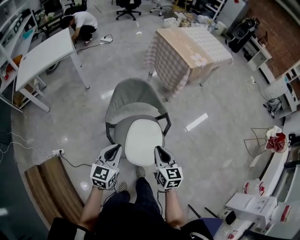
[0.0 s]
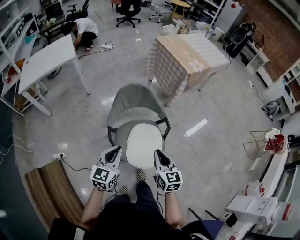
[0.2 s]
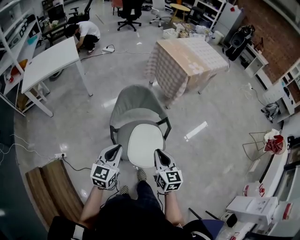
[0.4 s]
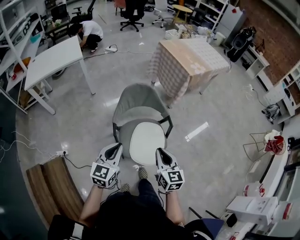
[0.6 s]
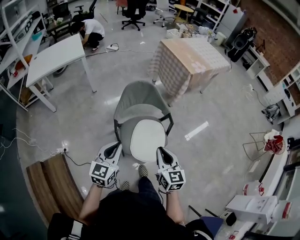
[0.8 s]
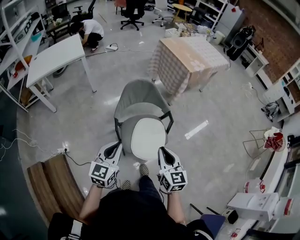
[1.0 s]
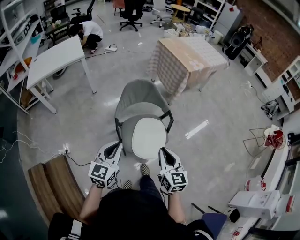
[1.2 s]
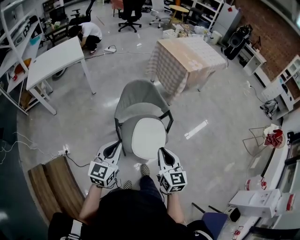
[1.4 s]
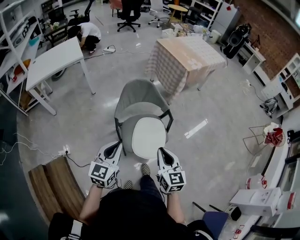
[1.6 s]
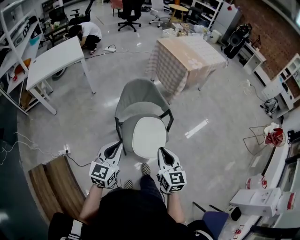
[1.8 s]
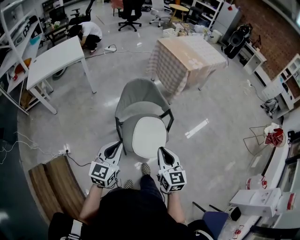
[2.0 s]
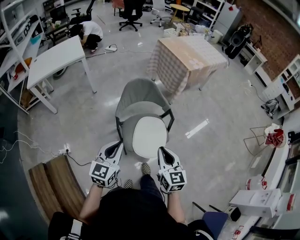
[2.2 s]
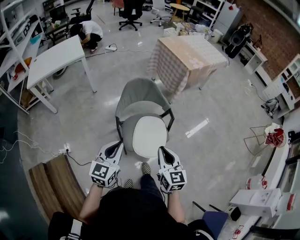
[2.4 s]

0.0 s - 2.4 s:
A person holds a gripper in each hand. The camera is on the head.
0.0 s - 1.2 s: The two grippers go roughly 15 cm backward and upward.
1.2 s - 2.4 s: Both grippers stay put.

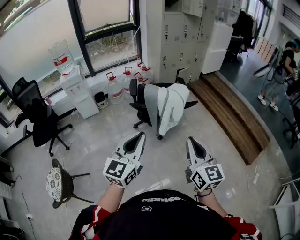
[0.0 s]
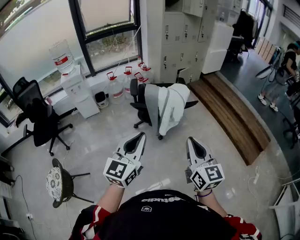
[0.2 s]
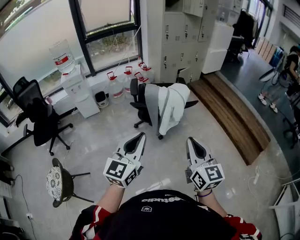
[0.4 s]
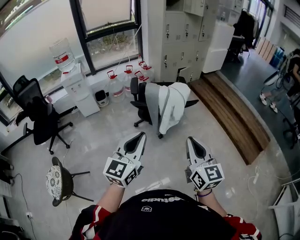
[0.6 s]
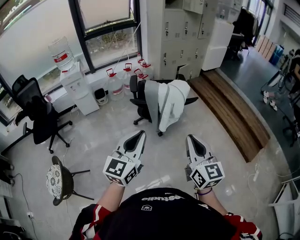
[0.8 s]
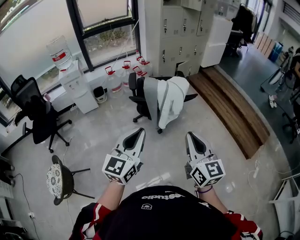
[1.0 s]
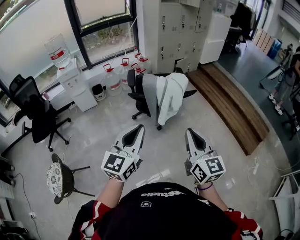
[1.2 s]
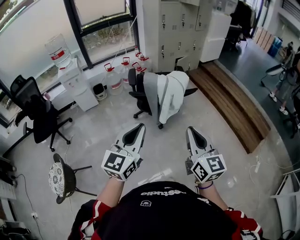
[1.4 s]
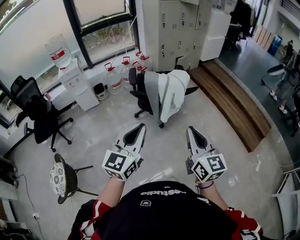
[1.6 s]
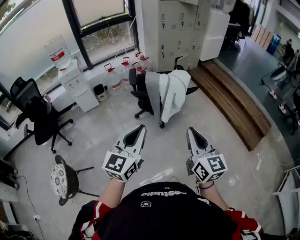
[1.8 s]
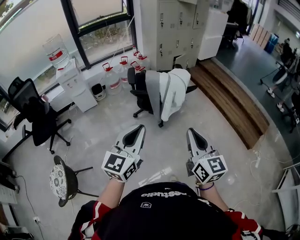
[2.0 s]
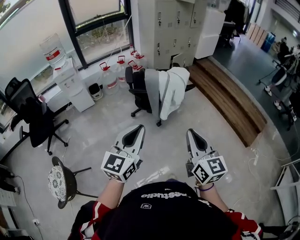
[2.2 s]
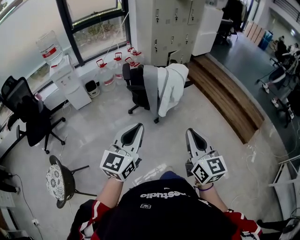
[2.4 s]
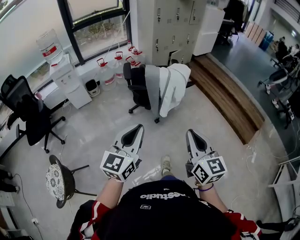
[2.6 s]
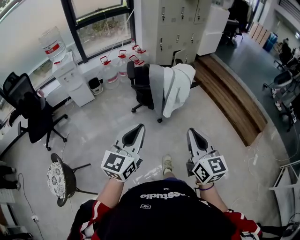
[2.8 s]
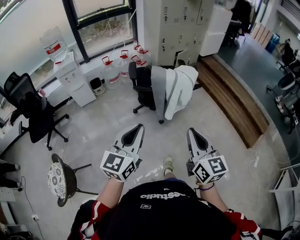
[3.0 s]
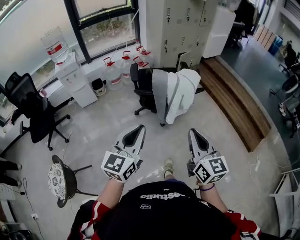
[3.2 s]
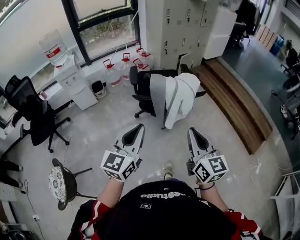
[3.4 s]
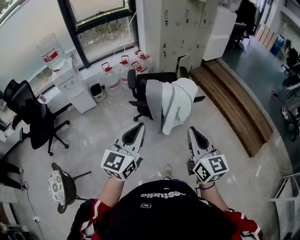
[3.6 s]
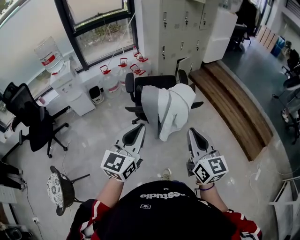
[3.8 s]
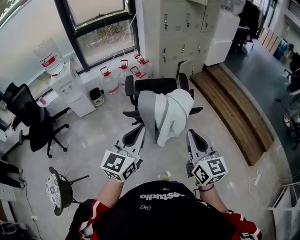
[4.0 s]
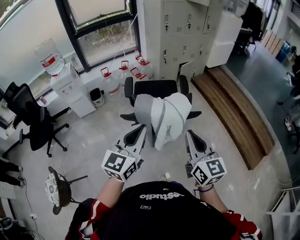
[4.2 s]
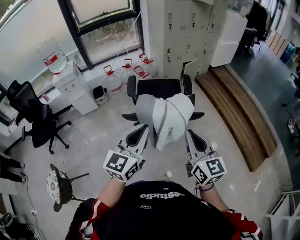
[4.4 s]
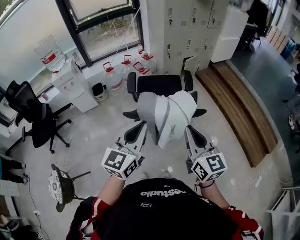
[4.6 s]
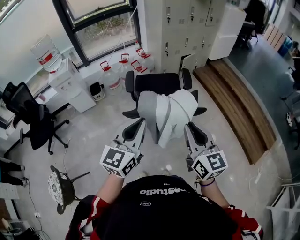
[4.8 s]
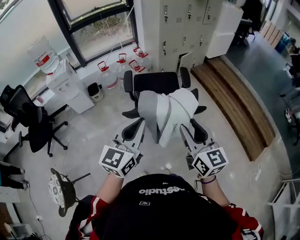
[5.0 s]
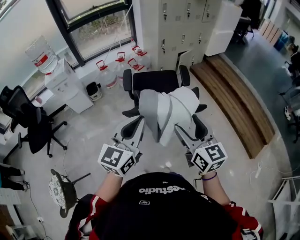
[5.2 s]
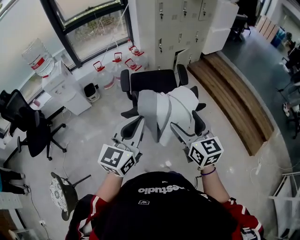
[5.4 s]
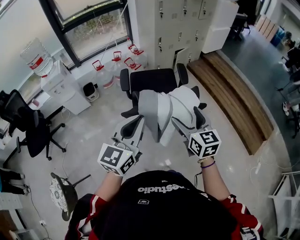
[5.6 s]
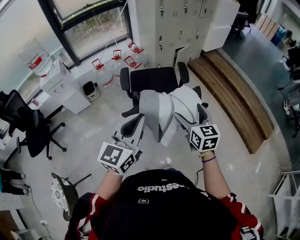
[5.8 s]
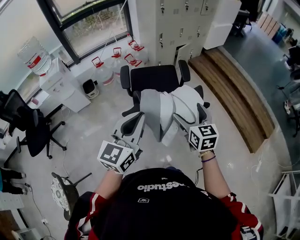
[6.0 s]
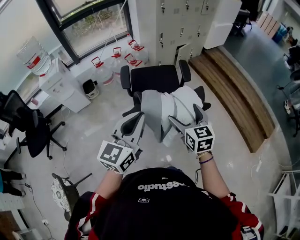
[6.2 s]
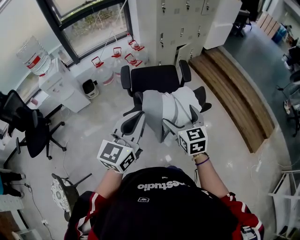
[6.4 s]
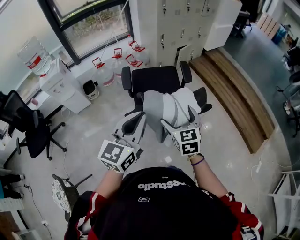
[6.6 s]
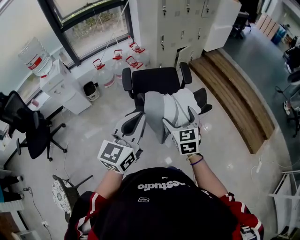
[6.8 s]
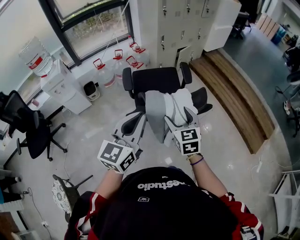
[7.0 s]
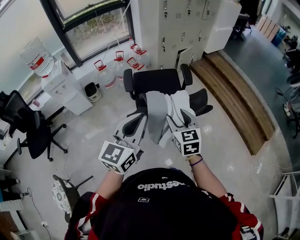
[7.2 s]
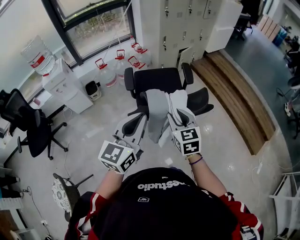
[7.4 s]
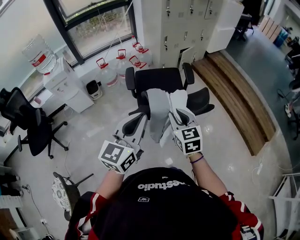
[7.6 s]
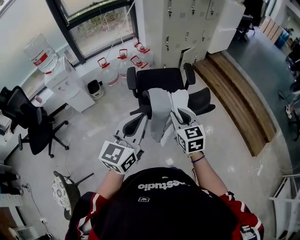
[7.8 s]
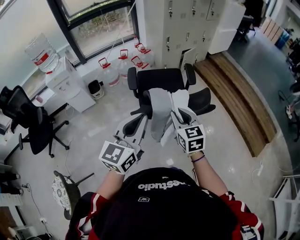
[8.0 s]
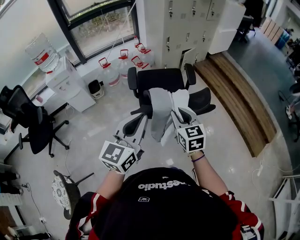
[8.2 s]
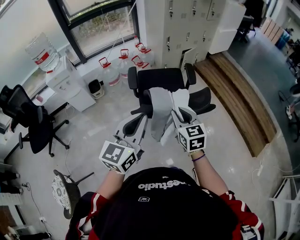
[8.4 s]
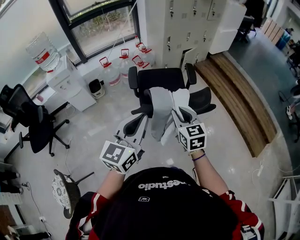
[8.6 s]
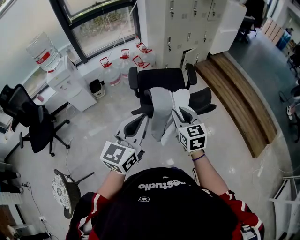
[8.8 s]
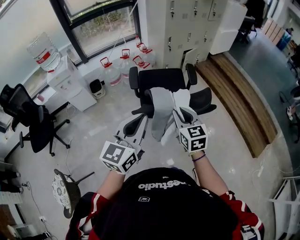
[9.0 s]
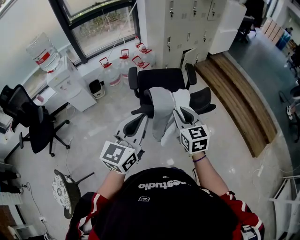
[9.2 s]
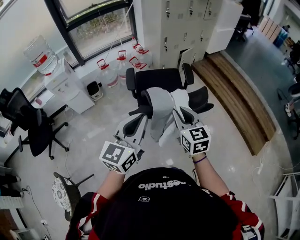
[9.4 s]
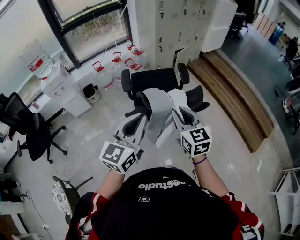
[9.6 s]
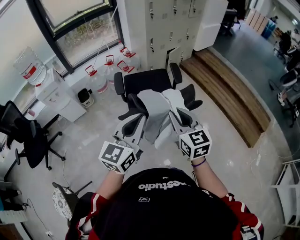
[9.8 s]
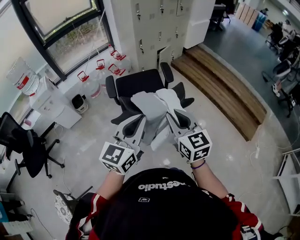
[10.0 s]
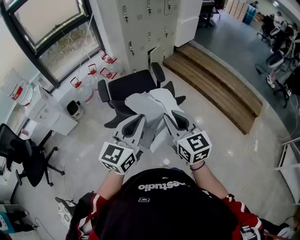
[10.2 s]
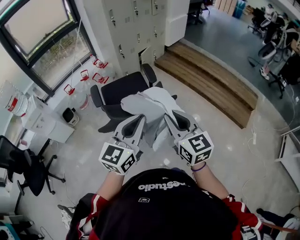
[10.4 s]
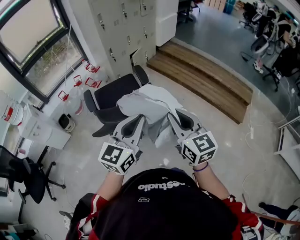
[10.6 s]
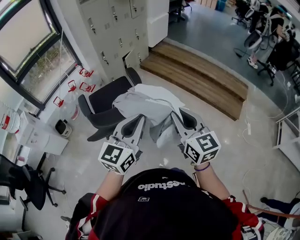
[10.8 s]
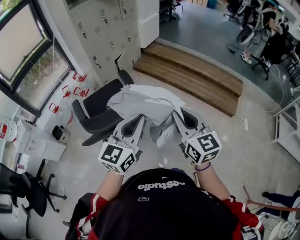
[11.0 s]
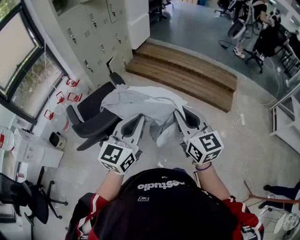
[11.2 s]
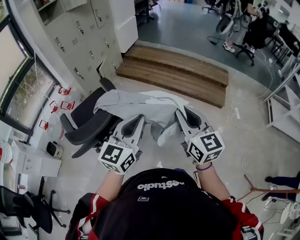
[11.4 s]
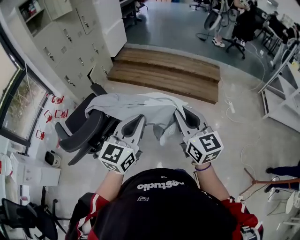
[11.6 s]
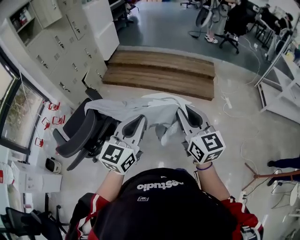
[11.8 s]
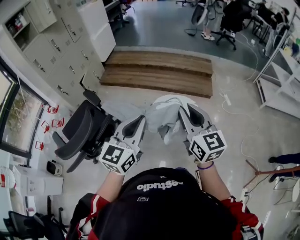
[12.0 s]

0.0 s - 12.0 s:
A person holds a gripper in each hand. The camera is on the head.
0.0 s - 1.6 s: The grippers move only a little.
1.6 s - 3.0 s: The grippers both shift to the left by approximately 5 cm.
3.0 s - 4.4 s: The right gripper goes some 30 cm forward. The left gripper travels forward and to the right by roughly 30 cm.
4.4 s - 6.0 s: The right gripper shifts some 20 cm forward and downward, and opens its fingers; the left gripper goes some 10 cm forward and to the left.
6.0 s - 7.6 s: The right gripper heads to the left, covering about 10 cm, and closes up.
7.6 s - 9.0 s: The grippers make only small movements.
9.0 s - 10.4 s: The left gripper travels to the right by about 20 cm, while the right gripper moves to the right and upward, some 20 cm.
10.4 s - 12.0 s: The right gripper changes place by about 40 cm, and swivels some 40 degrees. Meanwhile the left gripper changes place by roughly 35 cm, and swivels approximately 30 degrees.

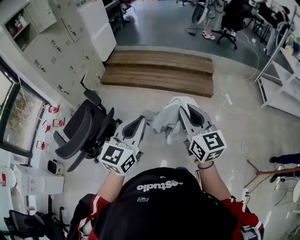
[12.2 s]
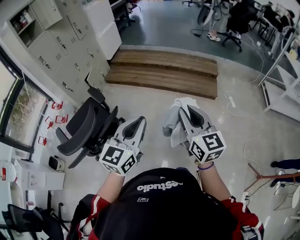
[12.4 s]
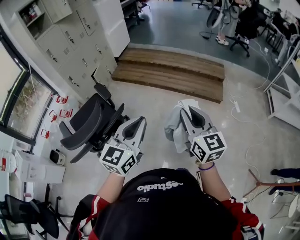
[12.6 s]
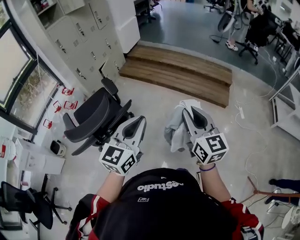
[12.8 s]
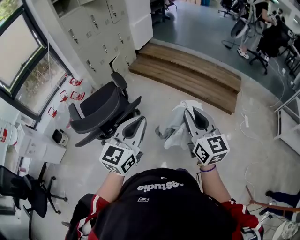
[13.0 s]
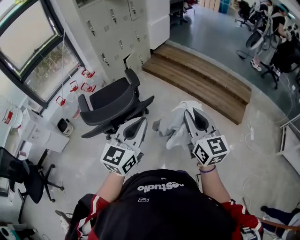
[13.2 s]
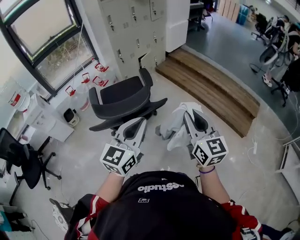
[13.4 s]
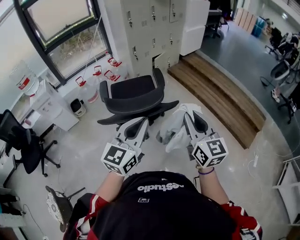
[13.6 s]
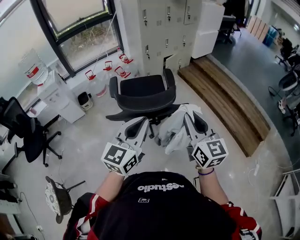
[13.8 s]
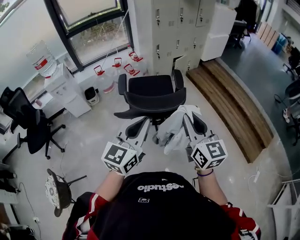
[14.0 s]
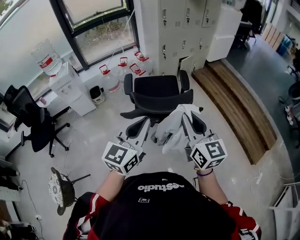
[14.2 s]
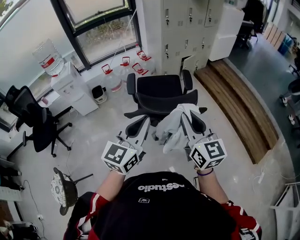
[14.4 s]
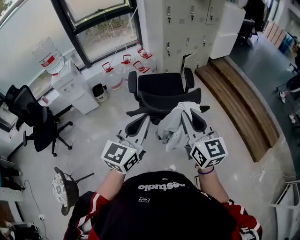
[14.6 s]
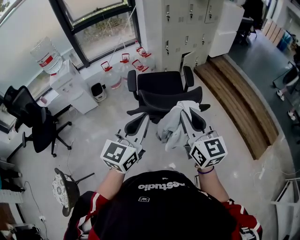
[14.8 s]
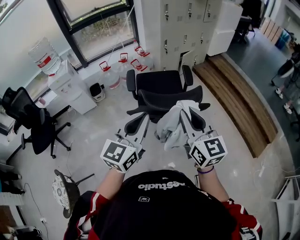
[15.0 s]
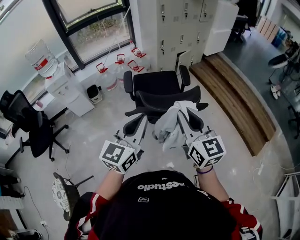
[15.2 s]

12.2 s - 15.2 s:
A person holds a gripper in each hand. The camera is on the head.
12.2 s - 13.8 s: The left gripper shifts by roughly 30 cm, and swivels about 40 degrees. Meanwhile the right gripper shifts by some 30 cm, and turns by some 40 degrees.
13.8 s - 15.2 s: The two grippers go roughly 15 cm to the left.

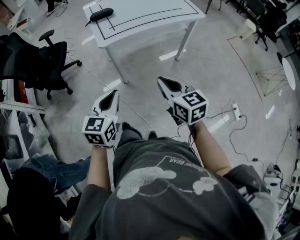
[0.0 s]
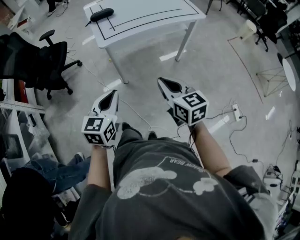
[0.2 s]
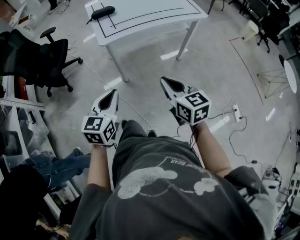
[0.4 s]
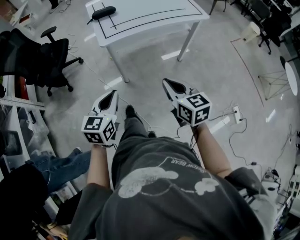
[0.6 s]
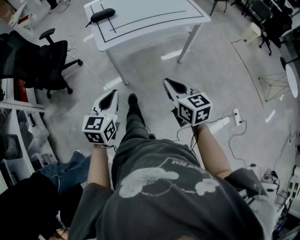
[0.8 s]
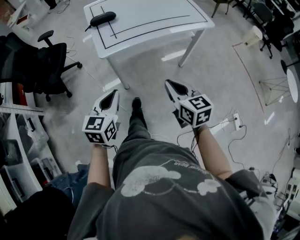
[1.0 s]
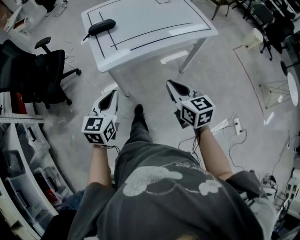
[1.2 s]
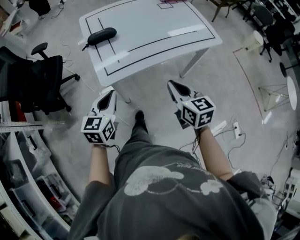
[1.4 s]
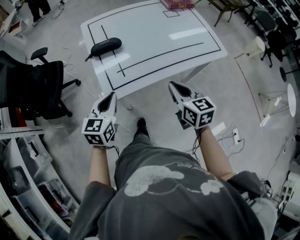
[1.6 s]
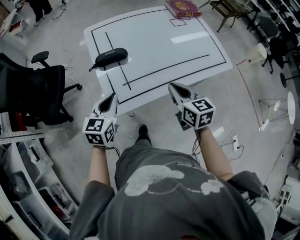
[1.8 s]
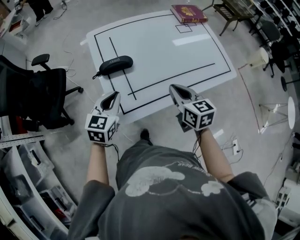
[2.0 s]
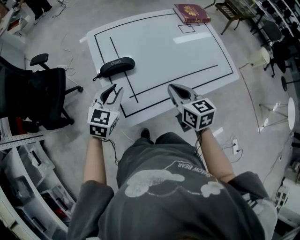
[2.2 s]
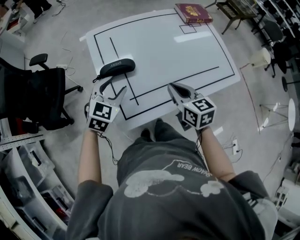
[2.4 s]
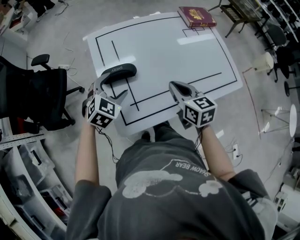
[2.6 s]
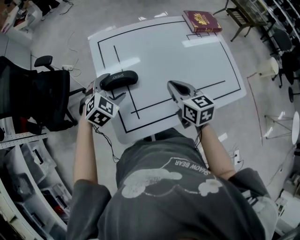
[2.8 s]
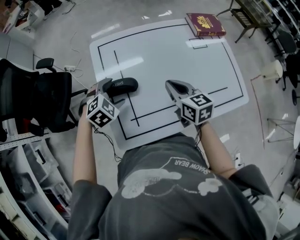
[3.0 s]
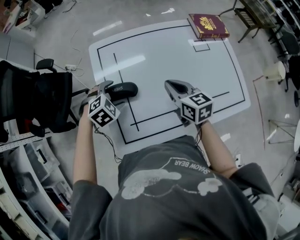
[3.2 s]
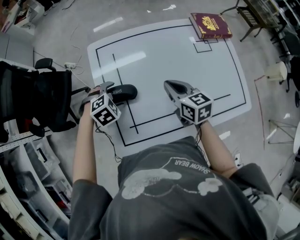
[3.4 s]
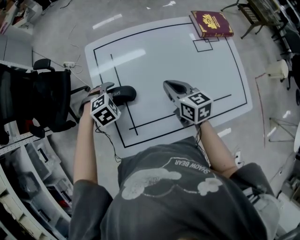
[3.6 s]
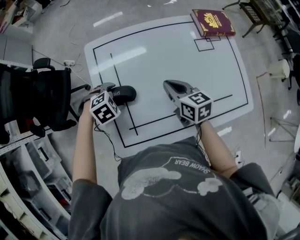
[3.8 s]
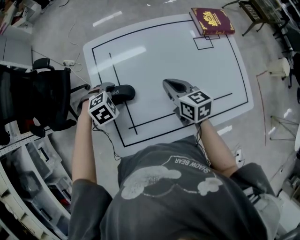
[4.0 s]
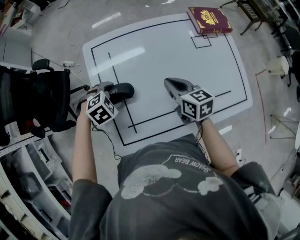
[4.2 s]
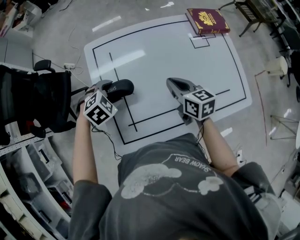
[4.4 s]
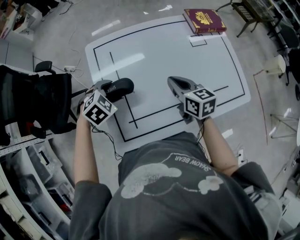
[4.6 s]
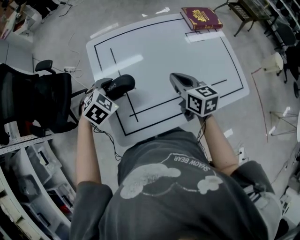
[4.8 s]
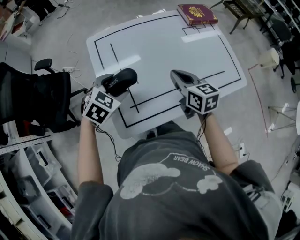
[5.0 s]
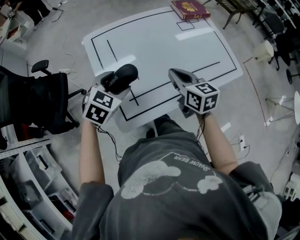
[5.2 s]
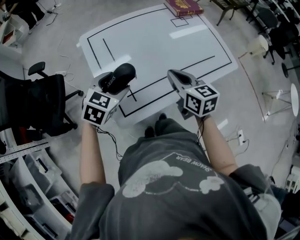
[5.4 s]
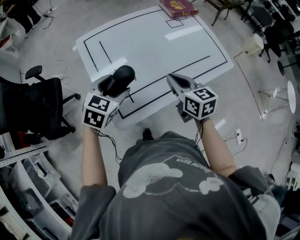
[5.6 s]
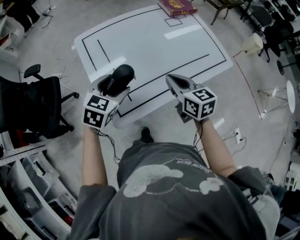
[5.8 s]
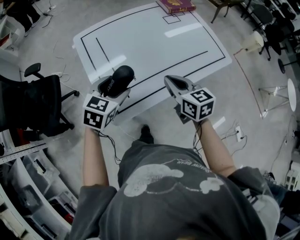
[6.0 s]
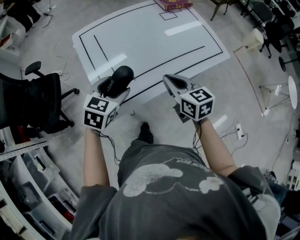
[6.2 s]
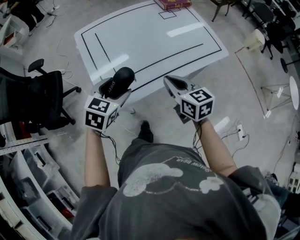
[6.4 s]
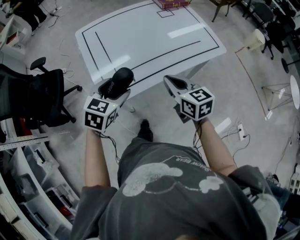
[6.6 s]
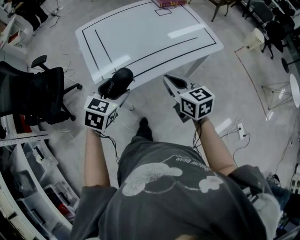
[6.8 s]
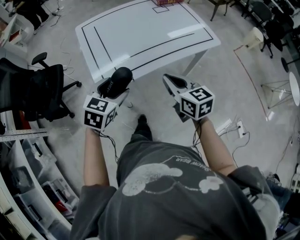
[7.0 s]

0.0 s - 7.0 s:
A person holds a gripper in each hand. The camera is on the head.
0.0 s - 1.4 s: Both grippers travel together forward, approximately 25 cm.
1.4 s - 2.8 s: The grippers both shift forward by about 30 cm. The left gripper rotates roughly 50 degrees, and opens up.
2.8 s - 4.2 s: The left gripper goes some 5 cm downward, and changes its angle by some 30 degrees. Meanwhile the right gripper shifts by roughly 10 cm.
4.2 s - 5.6 s: The left gripper goes some 15 cm upward and backward, and angles its fingers upward, by approximately 30 degrees, while the right gripper shifts some 20 cm backward and upward.
5.6 s - 7.0 s: Both grippers travel together backward and to the right, roughly 20 cm.
